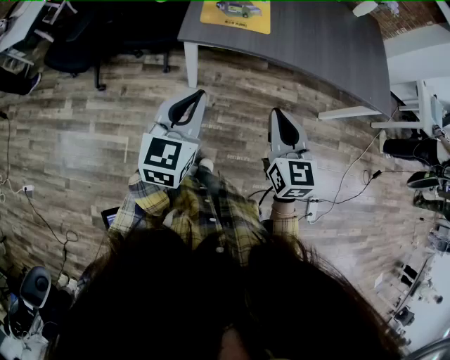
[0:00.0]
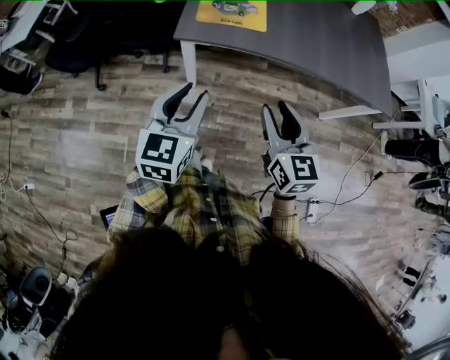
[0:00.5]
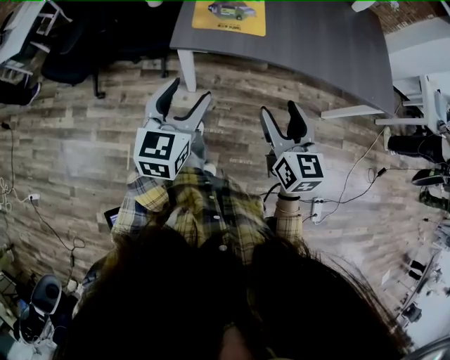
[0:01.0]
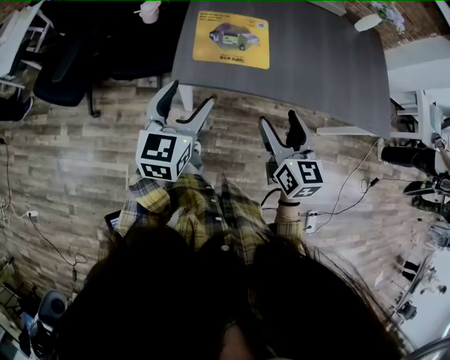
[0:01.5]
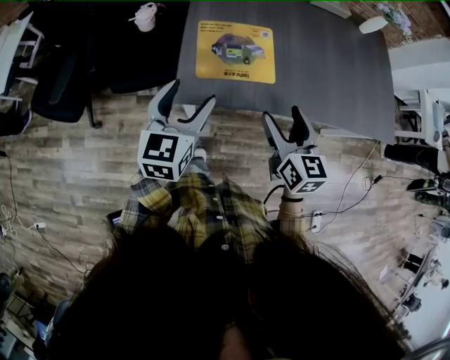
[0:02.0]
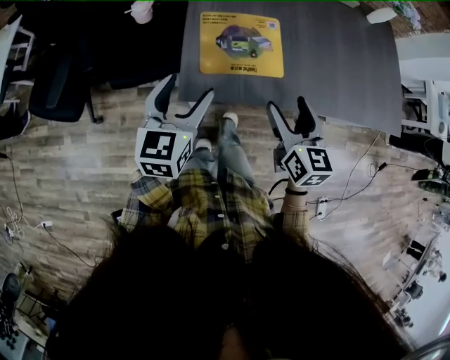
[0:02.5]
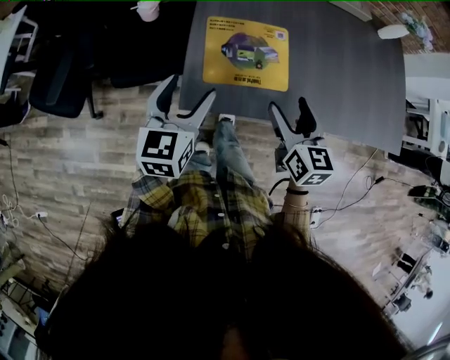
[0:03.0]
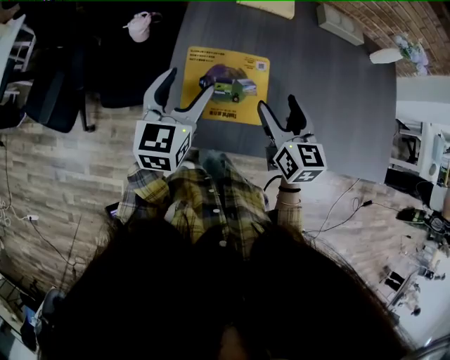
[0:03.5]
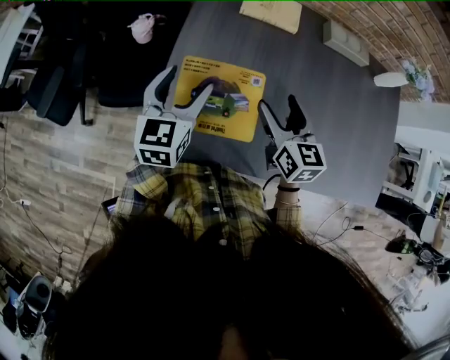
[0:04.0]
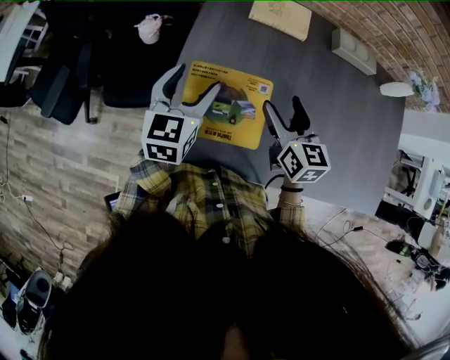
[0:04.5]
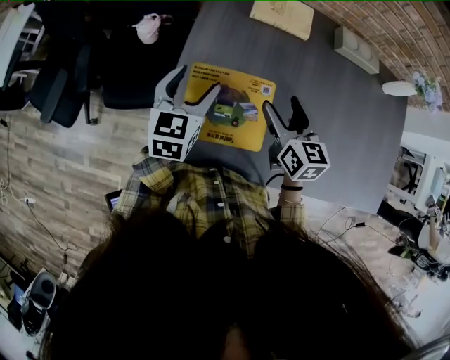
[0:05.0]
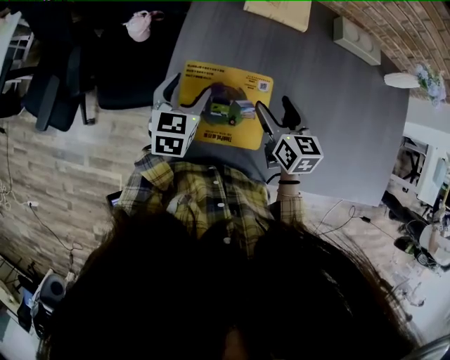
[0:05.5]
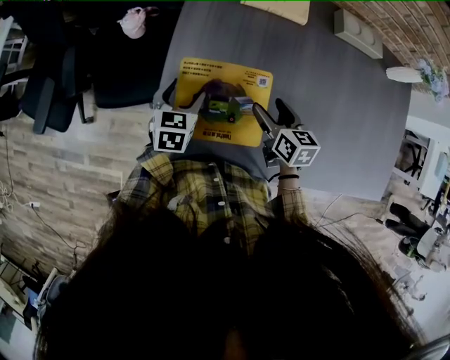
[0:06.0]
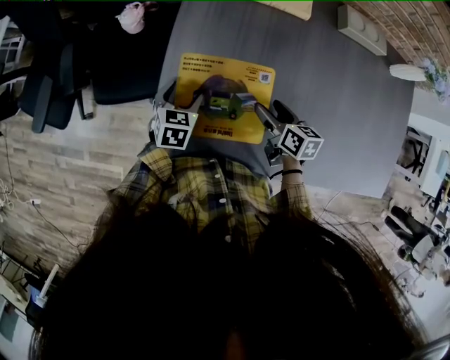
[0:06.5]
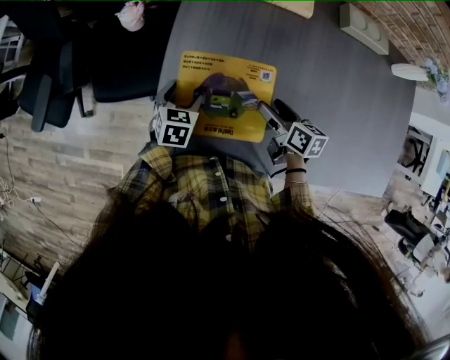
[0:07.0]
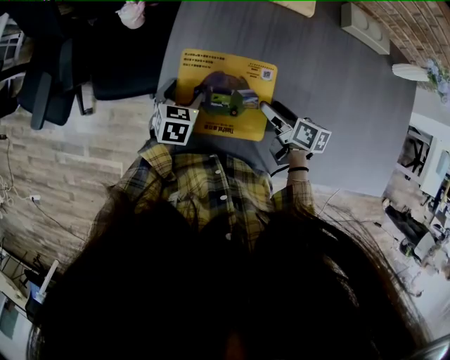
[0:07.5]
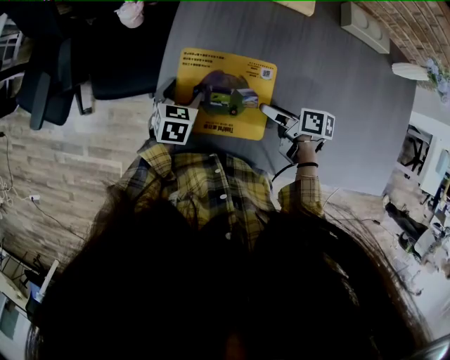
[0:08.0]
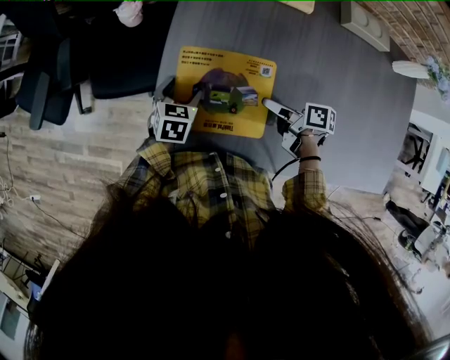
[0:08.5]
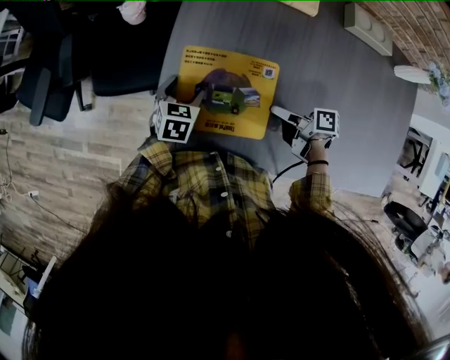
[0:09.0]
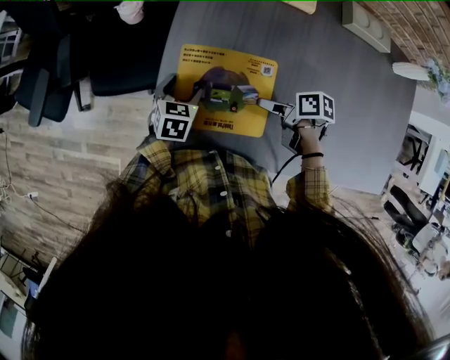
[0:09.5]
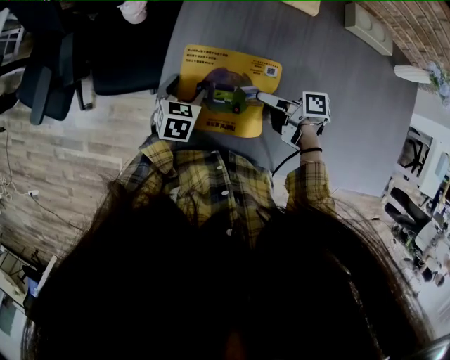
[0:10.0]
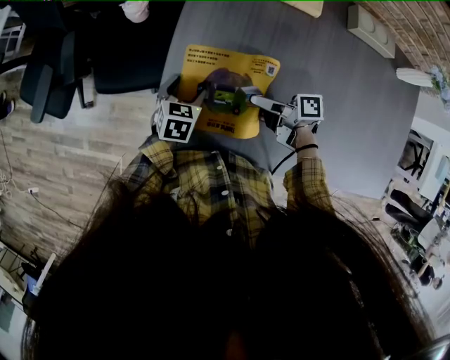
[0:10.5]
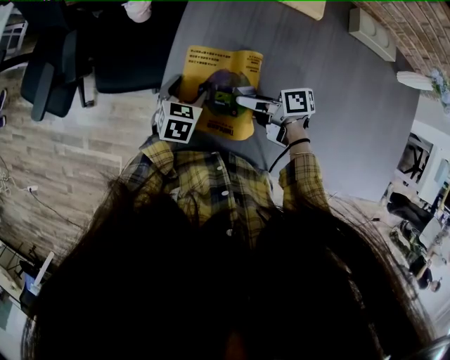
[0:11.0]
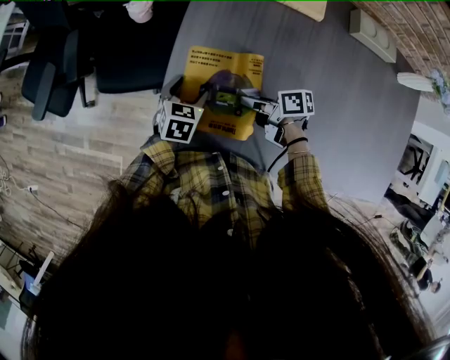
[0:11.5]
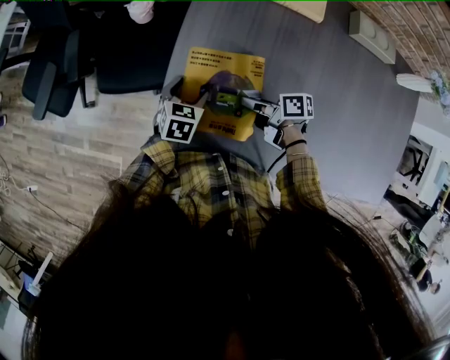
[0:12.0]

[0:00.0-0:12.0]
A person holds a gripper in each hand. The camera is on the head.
0:00.0 to 0:02.0: Both grippers move forward, some 25 cm. The left gripper opens up, while the right gripper opens its fingers.
0:02.0 to 0:04.0: Both grippers travel together forward, roughly 25 cm.
0:04.0 to 0:06.0: The grippers both shift downward by some 15 cm. The left gripper swivels approximately 20 degrees. Meanwhile the right gripper turns by approximately 20 degrees.
0:06.0 to 0:08.0: Both grippers move downward, approximately 5 cm. The right gripper changes its angle by roughly 40 degrees.
0:08.0 to 0:10.0: The grippers move only a little.
0:10.0 to 0:12.0: The right gripper goes about 5 cm to the left, and closes.

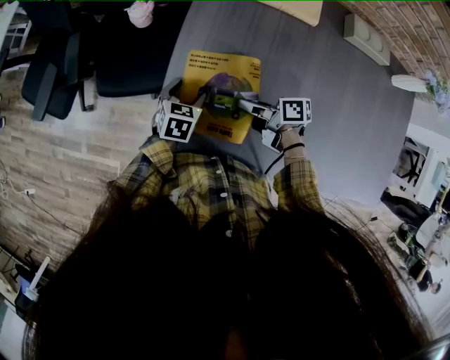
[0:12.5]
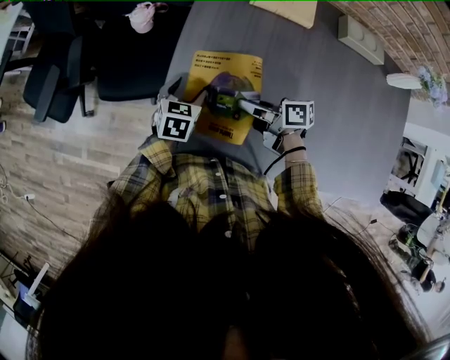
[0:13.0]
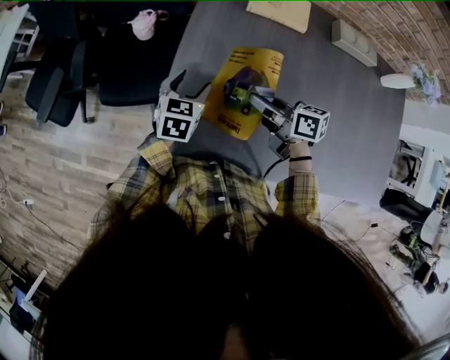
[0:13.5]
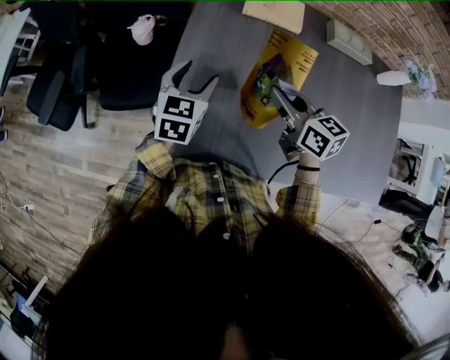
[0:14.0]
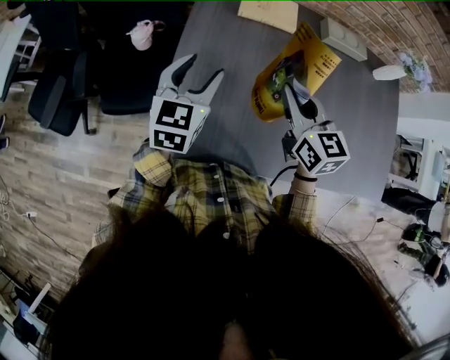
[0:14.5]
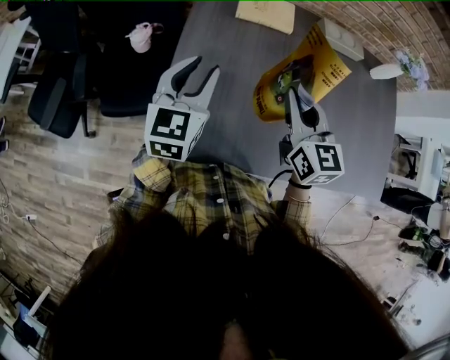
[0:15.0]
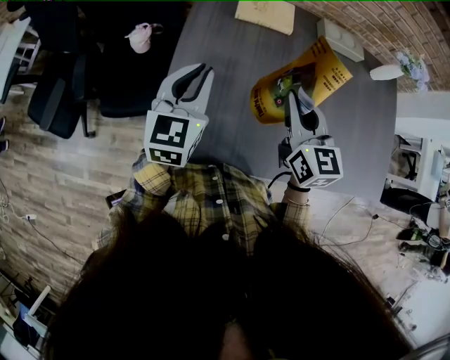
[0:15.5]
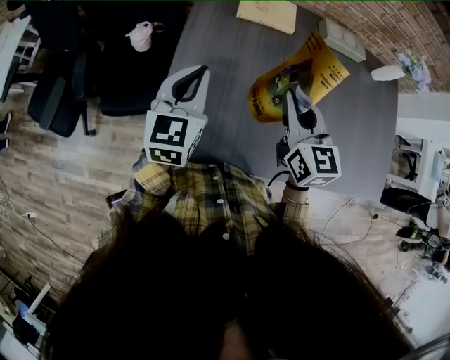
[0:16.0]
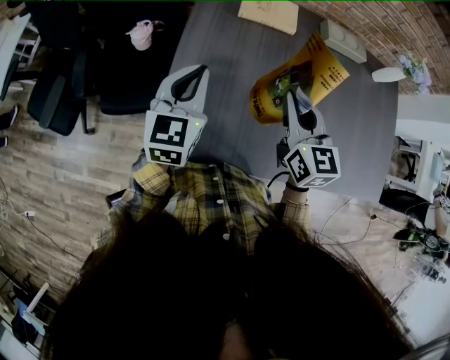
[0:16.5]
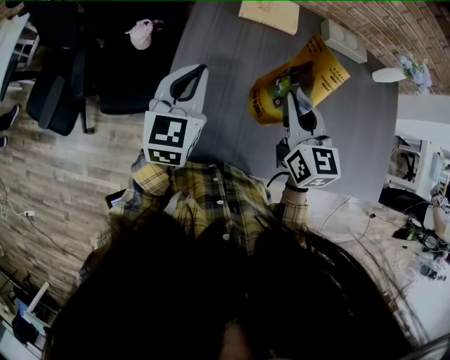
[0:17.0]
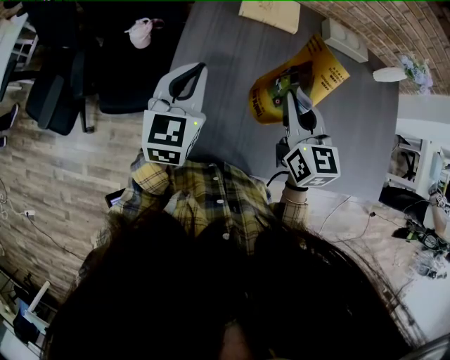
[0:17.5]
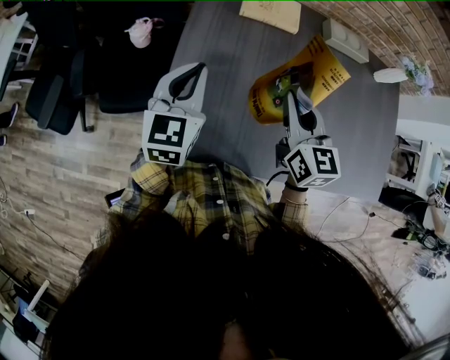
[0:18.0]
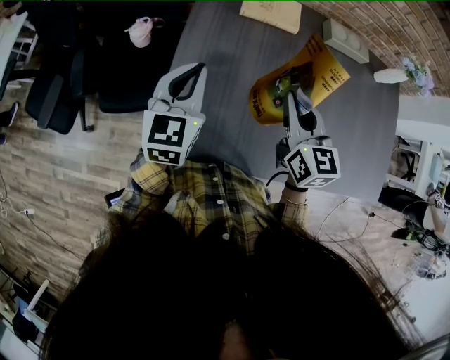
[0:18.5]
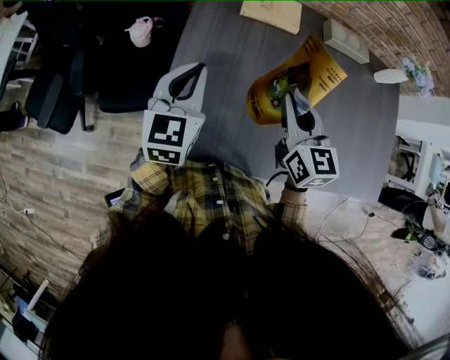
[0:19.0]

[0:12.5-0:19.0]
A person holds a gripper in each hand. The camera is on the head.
0:12.5 to 0:14.5: Both grippers travel together upward, about 25 cm. The right gripper rotates approximately 70 degrees. Meanwhile the left gripper angles its fingers upward, by roughly 30 degrees.
0:14.5 to 0:17.0: The left gripper closes up.
0:17.0 to 0:19.0: Neither gripper changes place.

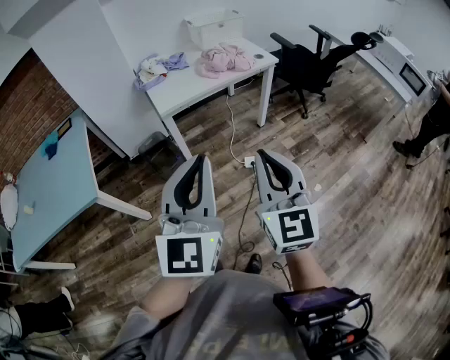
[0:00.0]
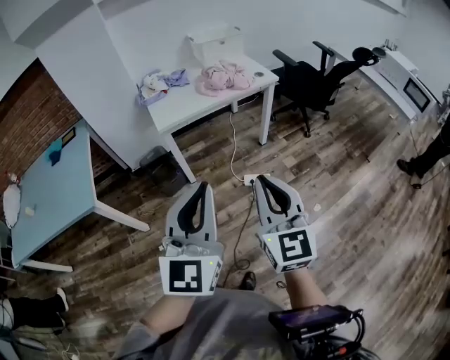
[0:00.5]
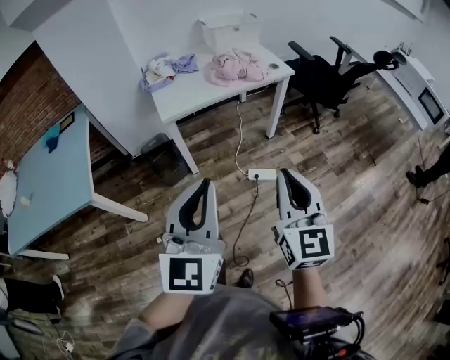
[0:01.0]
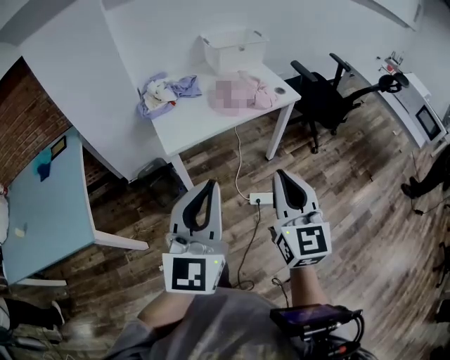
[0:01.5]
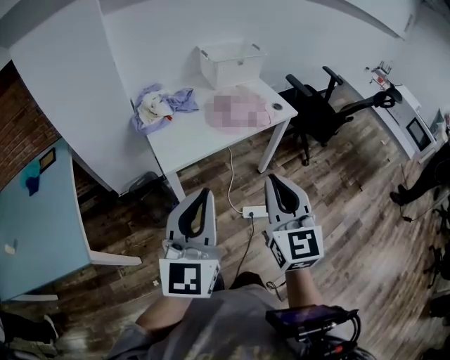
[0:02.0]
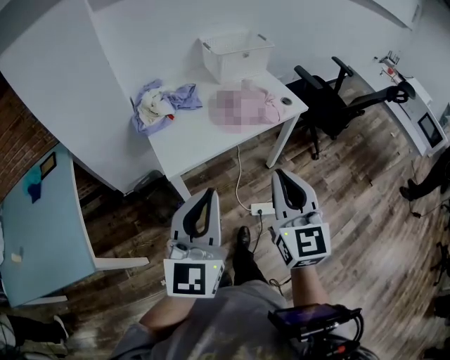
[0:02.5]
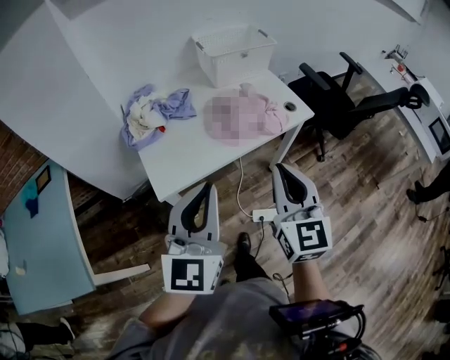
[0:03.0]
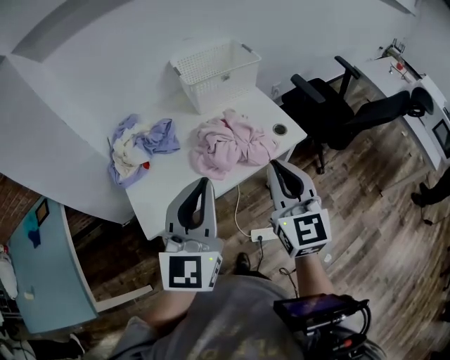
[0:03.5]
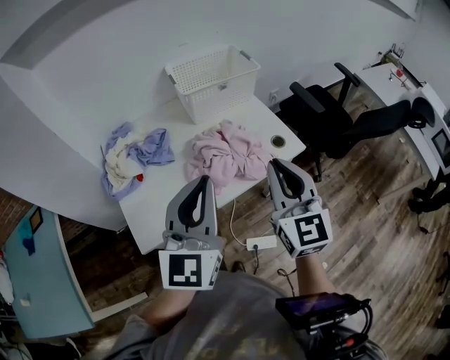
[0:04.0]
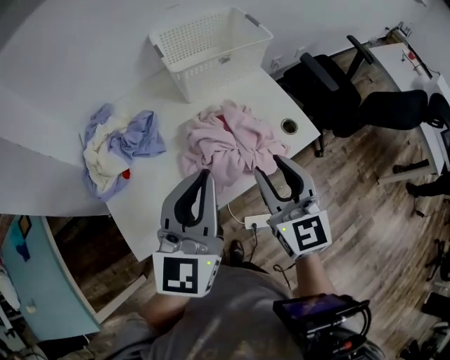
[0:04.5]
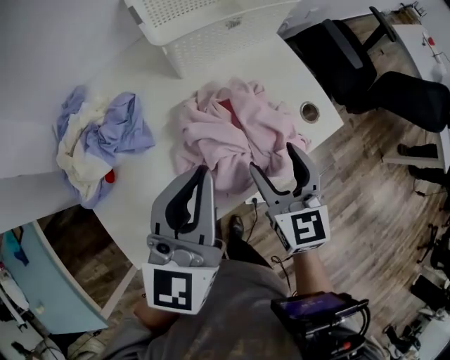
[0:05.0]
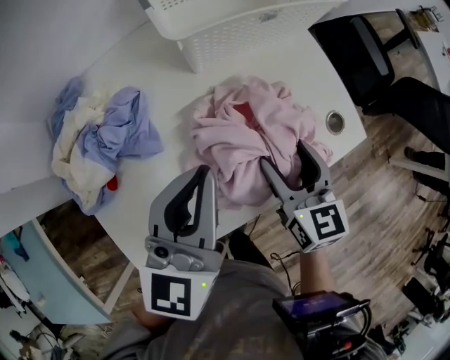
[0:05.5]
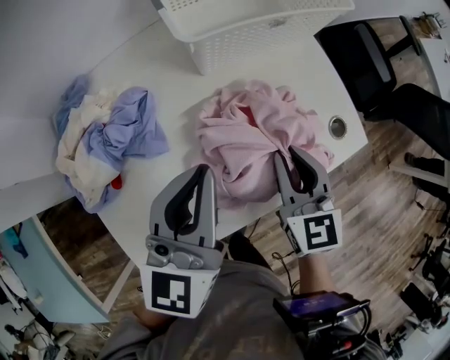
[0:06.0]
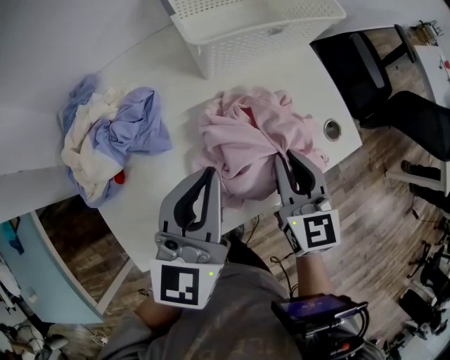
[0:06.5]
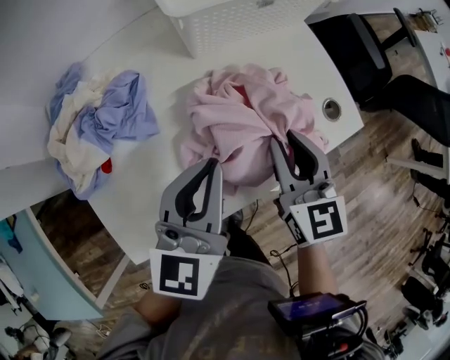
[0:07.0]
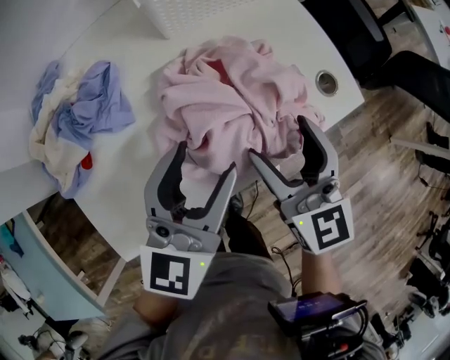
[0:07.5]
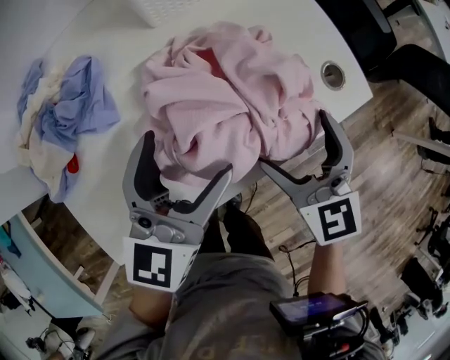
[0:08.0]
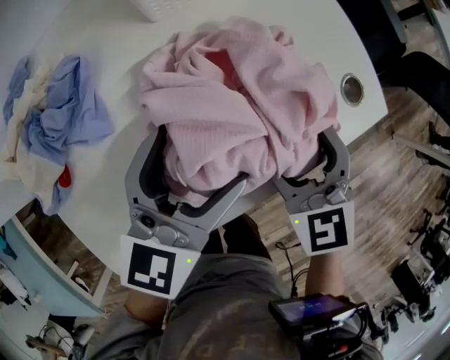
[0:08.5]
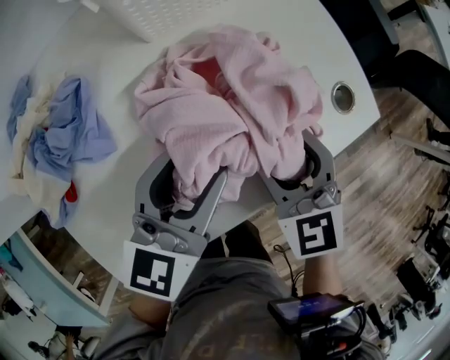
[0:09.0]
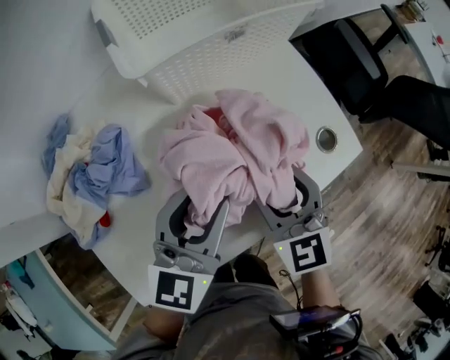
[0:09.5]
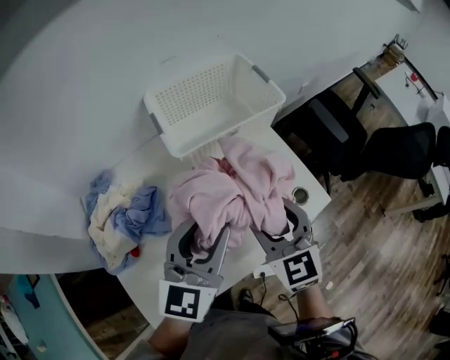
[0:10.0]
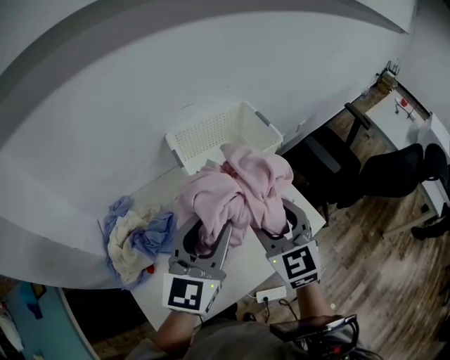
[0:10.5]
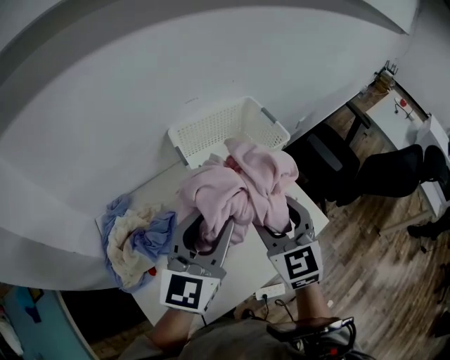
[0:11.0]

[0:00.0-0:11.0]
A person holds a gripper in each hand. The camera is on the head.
0:00.0 to 0:02.0: The grippers both shift forward by about 25 cm.
0:02.0 to 0:03.5: The two grippers go about 30 cm forward.
0:03.5 to 0:05.5: The two grippers go roughly 30 cm forward and downward. The right gripper swivels roughly 30 degrees, and opens its fingers, while the left gripper rotates approximately 20 degrees.
0:05.5 to 0:07.5: The right gripper changes place by approximately 5 cm, and closes, then reopens. Meanwhile the left gripper is displaced downward and backward by about 10 cm, and opens.
0:07.5 to 0:09.0: The left gripper heads downward and forward, covering some 10 cm, and opens, then closes once more. Meanwhile the right gripper moves downward, some 10 cm, and changes its angle by about 30 degrees.
0:09.0 to 0:11.0: The grippers both shift upward by about 30 cm. The left gripper swivels some 20 degrees. Meanwhile the right gripper turns by approximately 20 degrees.
